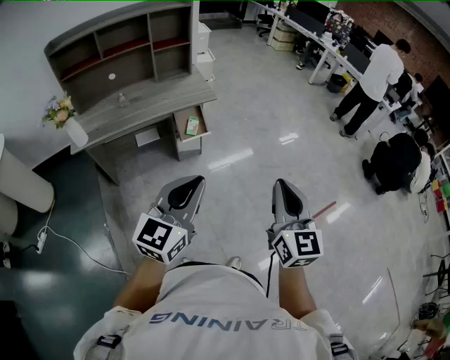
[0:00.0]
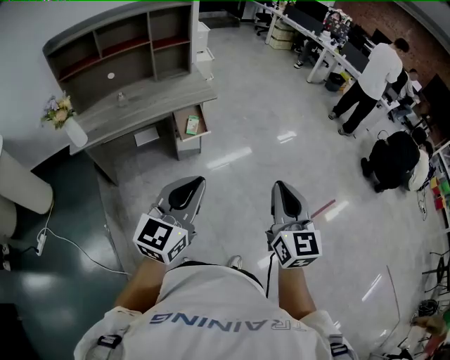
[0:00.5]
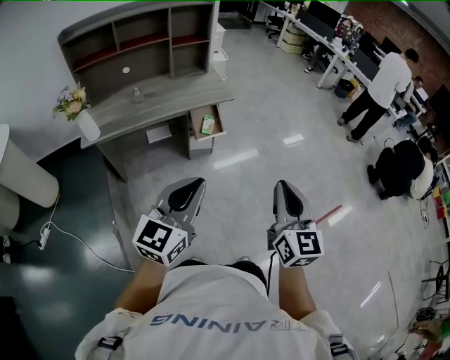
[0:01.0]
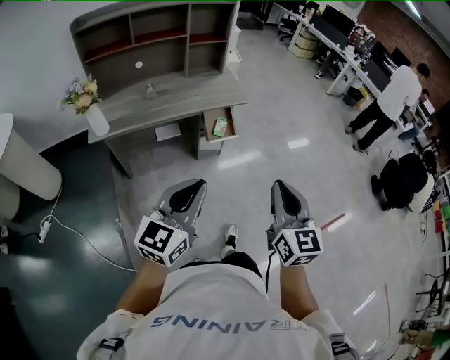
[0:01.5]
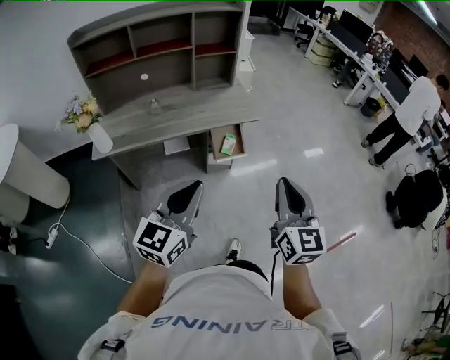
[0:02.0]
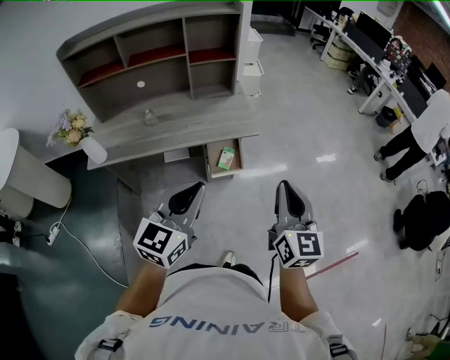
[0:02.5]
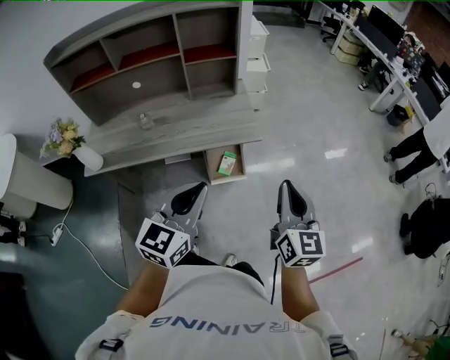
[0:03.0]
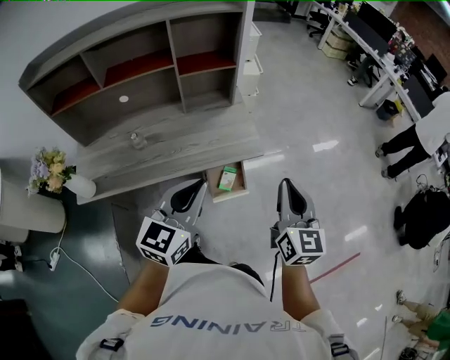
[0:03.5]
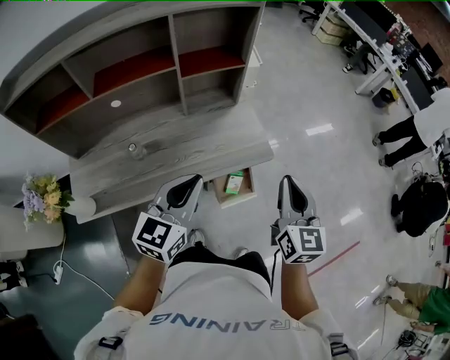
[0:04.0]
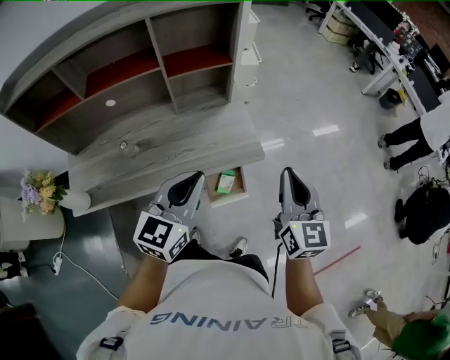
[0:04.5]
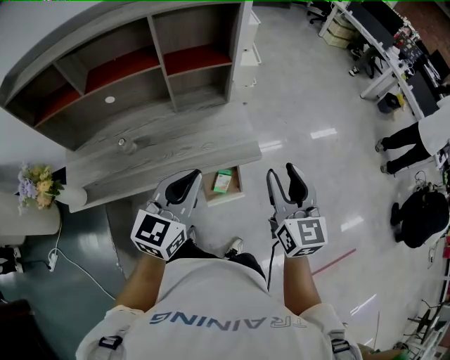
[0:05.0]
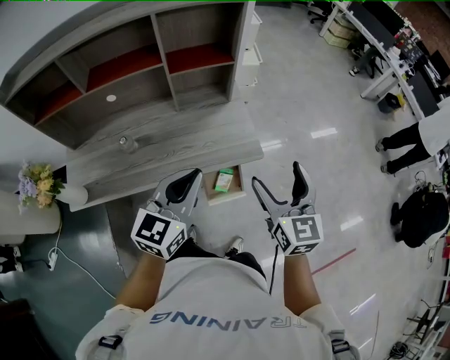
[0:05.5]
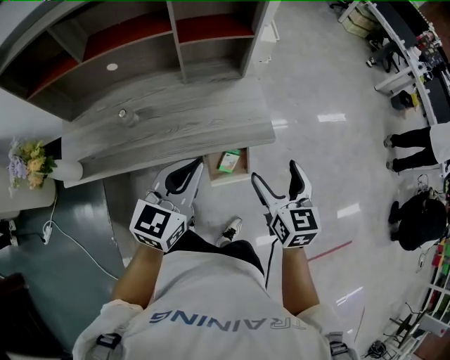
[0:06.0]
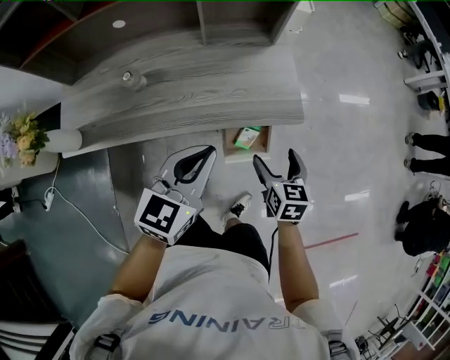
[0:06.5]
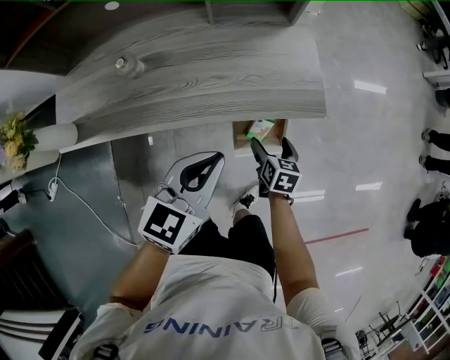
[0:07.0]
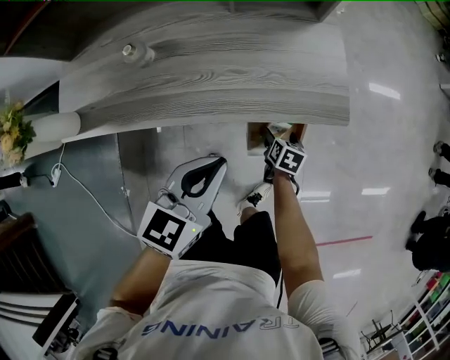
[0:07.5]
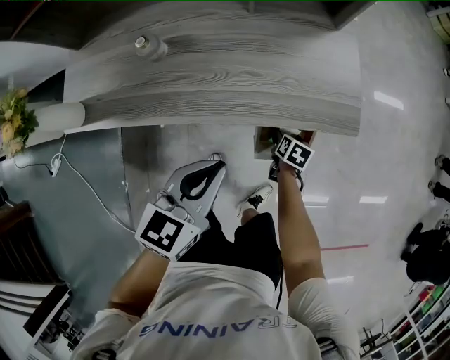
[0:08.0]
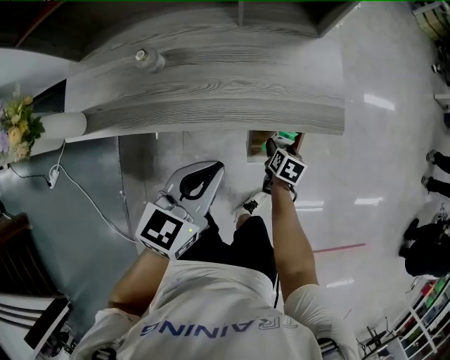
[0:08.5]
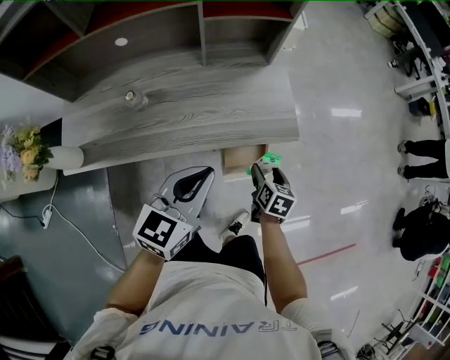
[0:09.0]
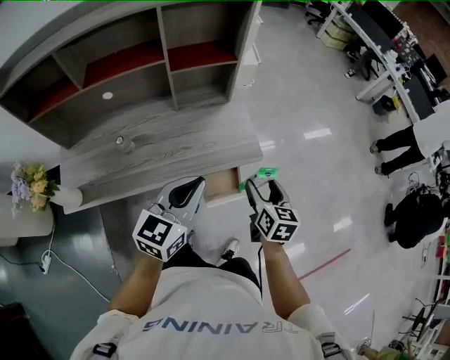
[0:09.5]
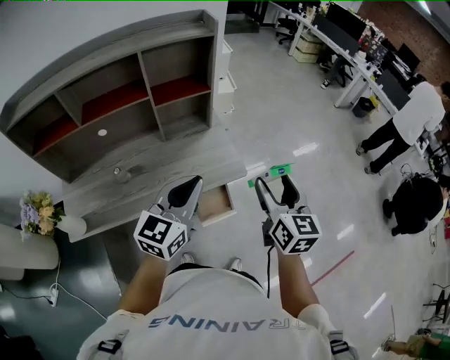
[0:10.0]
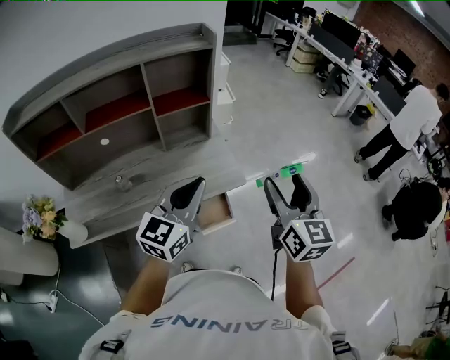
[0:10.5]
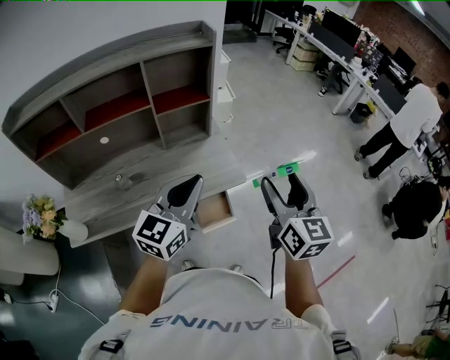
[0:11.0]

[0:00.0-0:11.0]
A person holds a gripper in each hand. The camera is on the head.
0:00.0 to 0:02.0: The left gripper shifts approximately 20 cm to the left and forward; the right gripper shifts some 25 cm forward and to the left.
0:02.0 to 0:03.5: The two grippers go about 30 cm forward.
0:03.5 to 0:05.5: Both grippers travel together forward, some 10 cm. The right gripper opens up.
0:05.5 to 0:07.5: The right gripper moves downward, about 50 cm, and tips its fingers downward by roughly 50 degrees. Meanwhile the left gripper goes approximately 20 cm downward, and turns by some 20 degrees.
0:07.5 to 0:09.0: The right gripper goes roughly 20 cm upward; the left gripper is displaced upward by approximately 10 cm.
0:09.0 to 0:11.0: The right gripper goes about 40 cm upward, and angles its fingers upward, by roughly 40 degrees; the left gripper is displaced upward by about 20 cm, and rotates approximately 20 degrees.

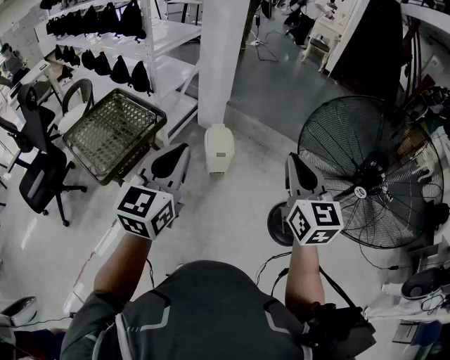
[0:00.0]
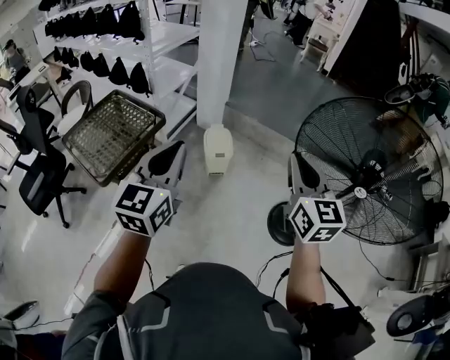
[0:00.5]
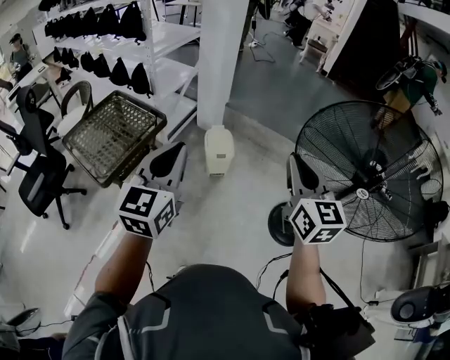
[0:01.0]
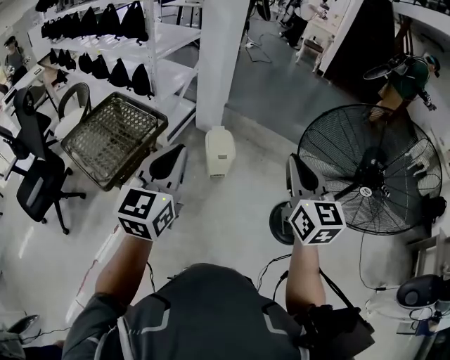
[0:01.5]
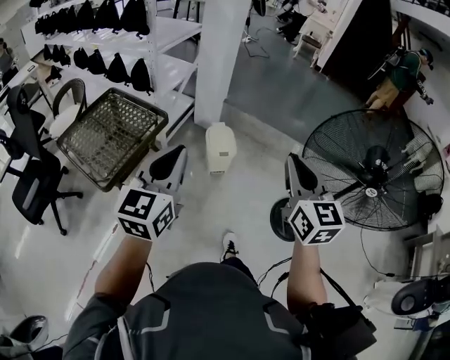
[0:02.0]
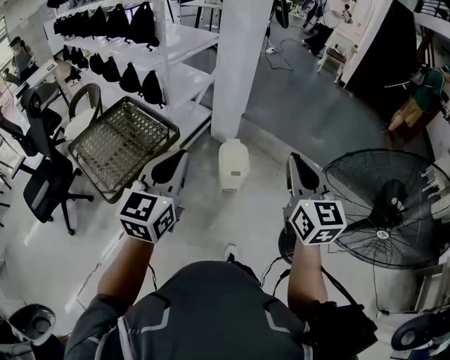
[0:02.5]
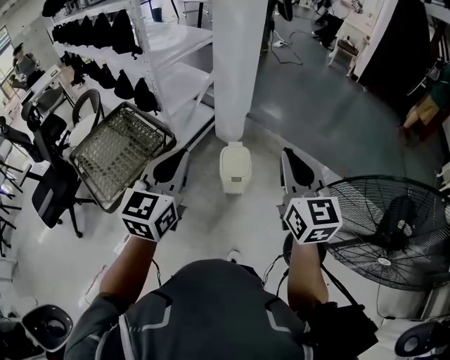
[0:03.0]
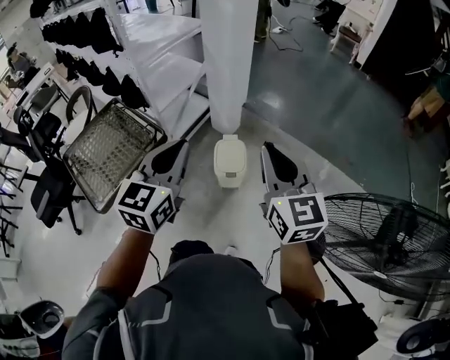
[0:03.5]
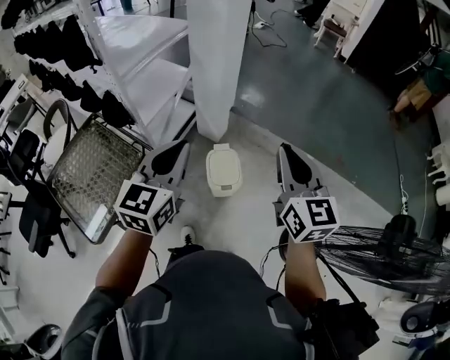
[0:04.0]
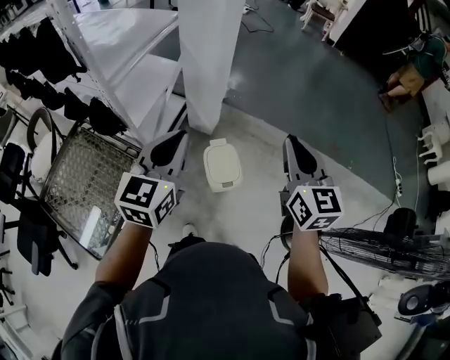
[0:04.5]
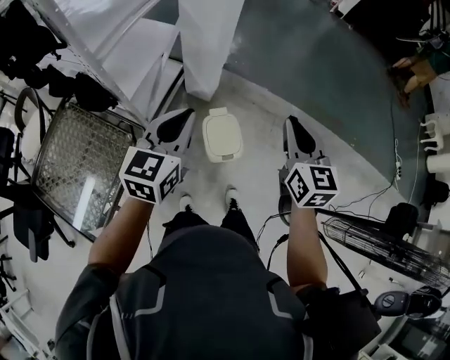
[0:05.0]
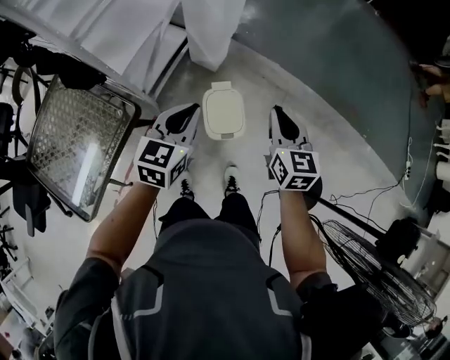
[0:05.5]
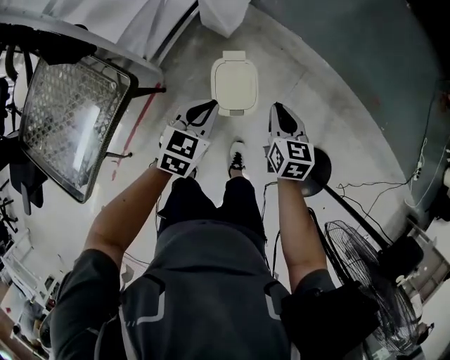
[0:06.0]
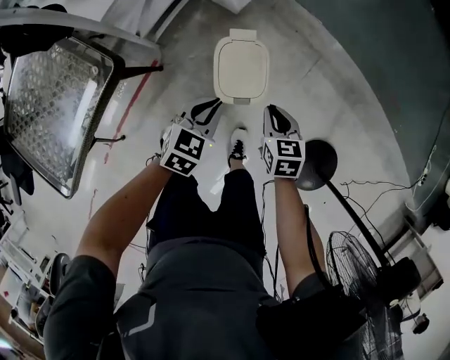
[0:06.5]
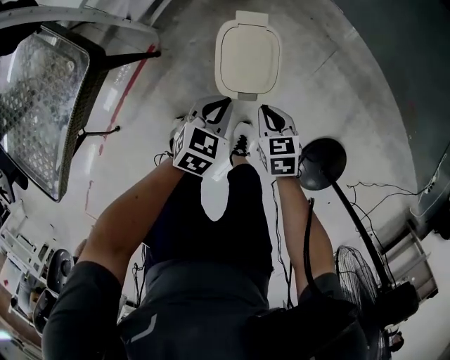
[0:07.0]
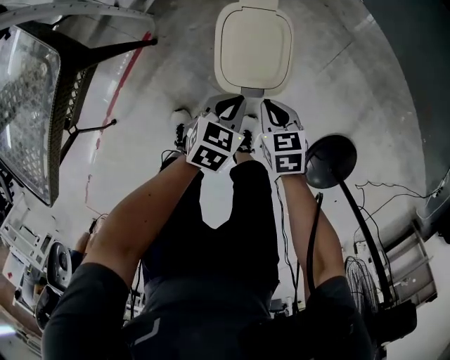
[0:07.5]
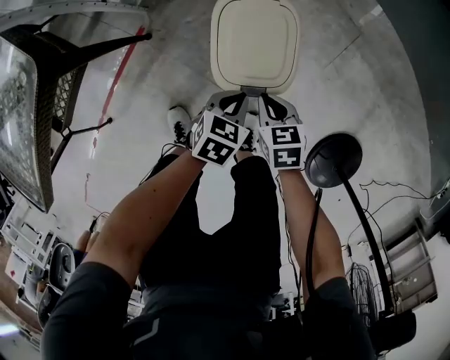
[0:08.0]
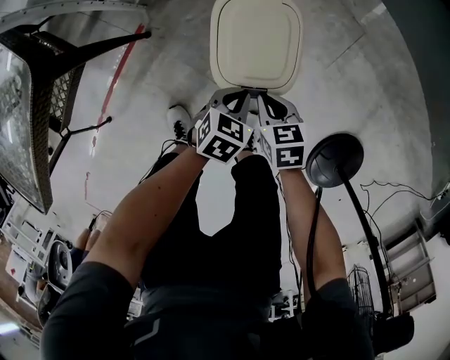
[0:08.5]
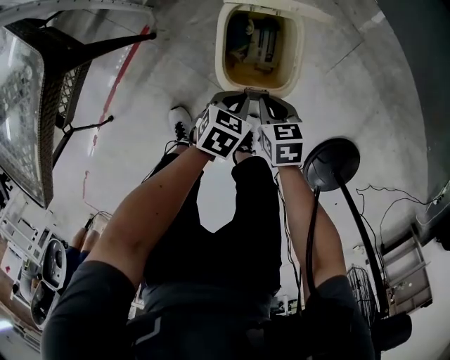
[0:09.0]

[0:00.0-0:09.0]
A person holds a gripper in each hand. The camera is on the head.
0:00.0 to 0:02.0: The two grippers go approximately 10 cm to the left.
0:02.0 to 0:04.5: Both grippers are carried forward, approximately 50 cm.
0:04.5 to 0:07.0: Both grippers travel together downward, about 60 cm. The left gripper tilts its fingers some 40 degrees downward; the right gripper points its fingers some 50 degrees further downward.
0:07.0 to 0:09.0: The grippers both shift downward by roughly 15 cm.

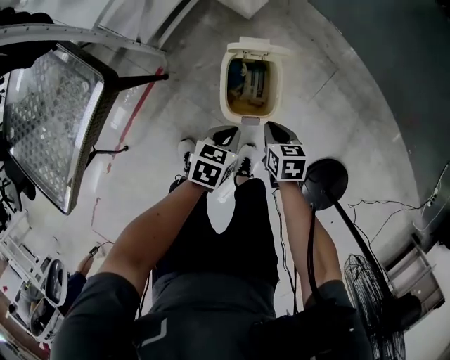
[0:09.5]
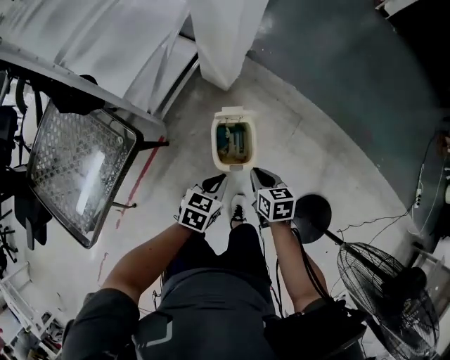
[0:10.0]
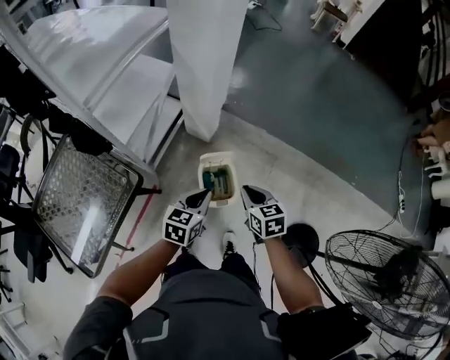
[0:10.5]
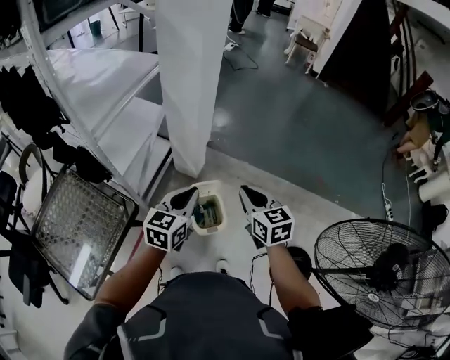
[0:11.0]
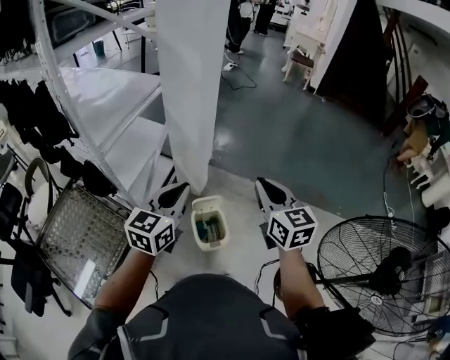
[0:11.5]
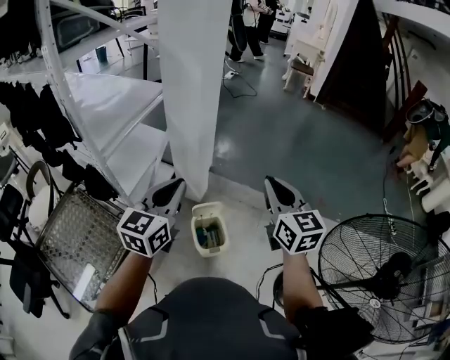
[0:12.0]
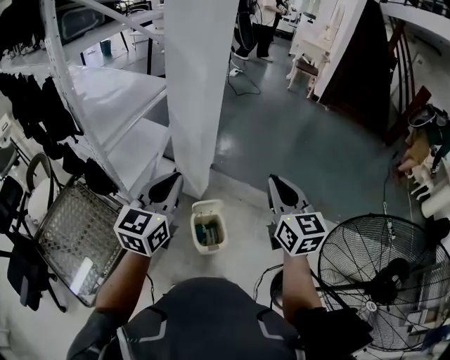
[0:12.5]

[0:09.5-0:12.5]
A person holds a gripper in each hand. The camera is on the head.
0:09.5 to 0:11.0: The two grippers go approximately 50 cm upward. The right gripper tilts its fingers some 30 degrees upward, while the left gripper tips its fingers upward by roughly 40 degrees.
0:11.0 to 0:12.5: Both grippers travel together upward, about 15 cm. The right gripper turns by roughly 20 degrees.

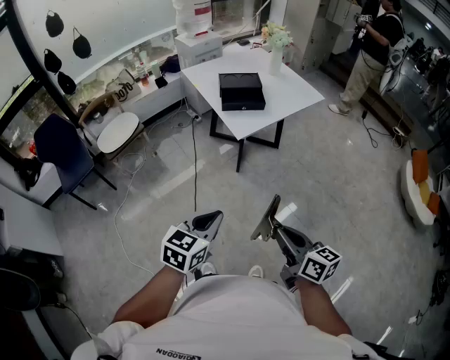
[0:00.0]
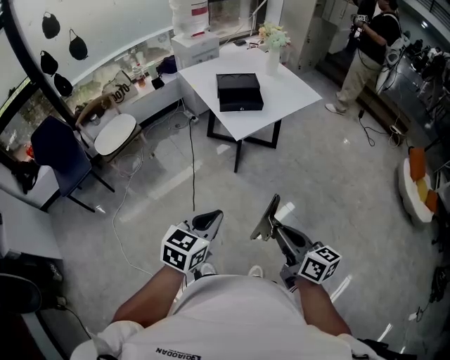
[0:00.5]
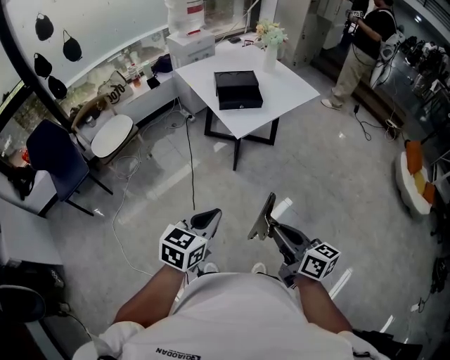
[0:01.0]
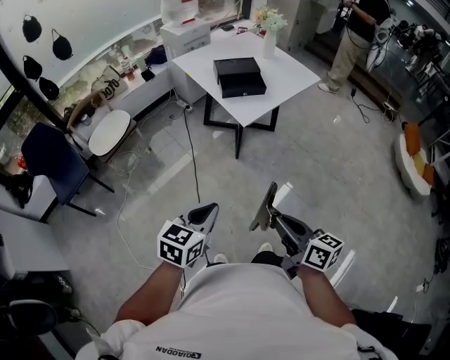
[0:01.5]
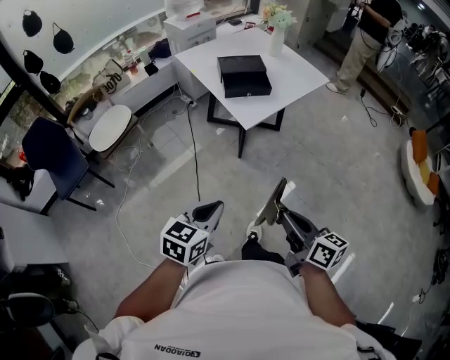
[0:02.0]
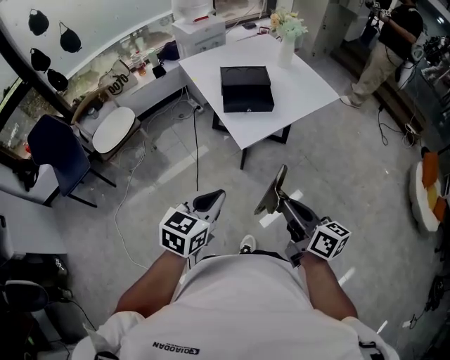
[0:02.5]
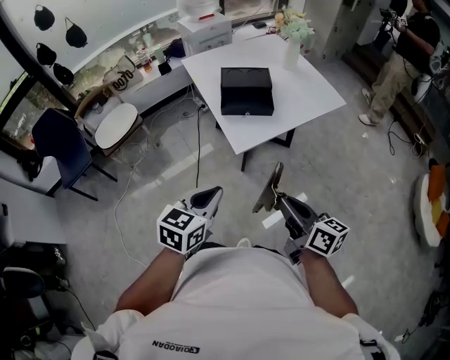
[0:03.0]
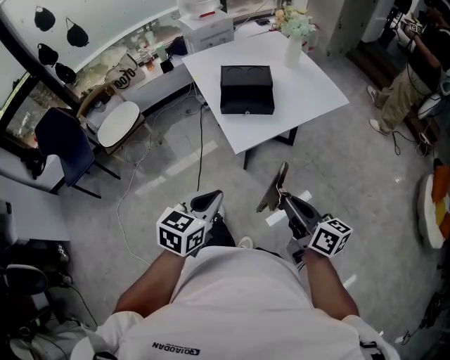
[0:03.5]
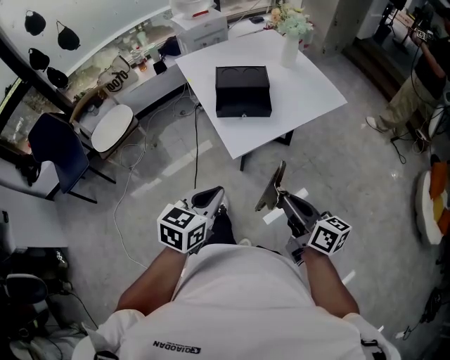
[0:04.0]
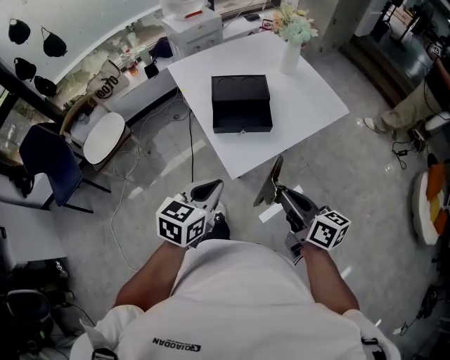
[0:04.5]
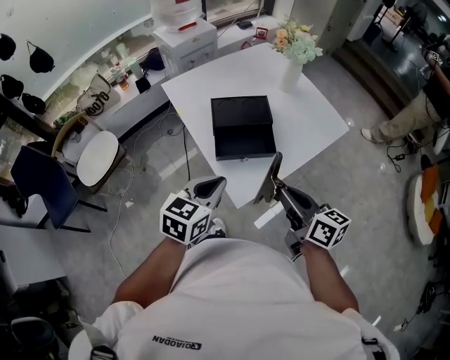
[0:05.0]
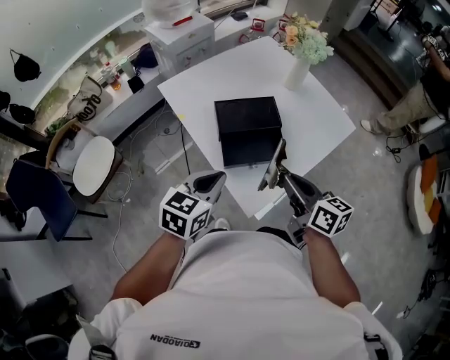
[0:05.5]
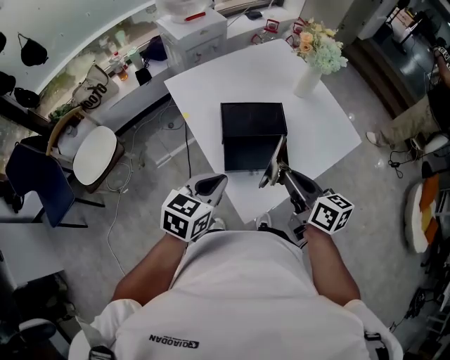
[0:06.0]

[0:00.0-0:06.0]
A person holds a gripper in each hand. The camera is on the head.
0:00.0 to 0:02.0: The grippers both shift to the left and forward by some 10 cm.
0:02.0 to 0:04.0: Both grippers travel together forward and to the right, approximately 25 cm.
0:04.0 to 0:06.0: The grippers both shift forward by roughly 30 cm.
